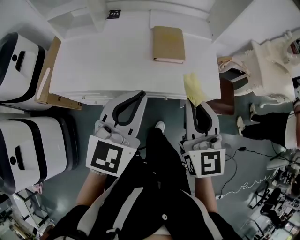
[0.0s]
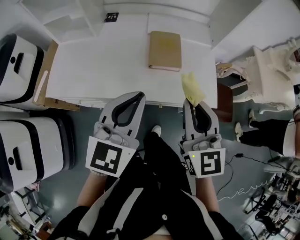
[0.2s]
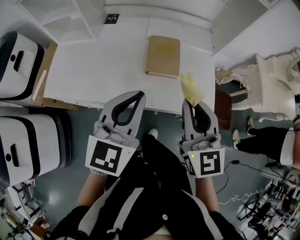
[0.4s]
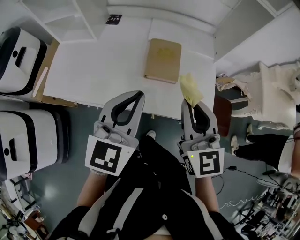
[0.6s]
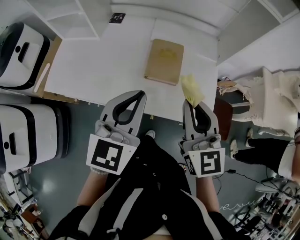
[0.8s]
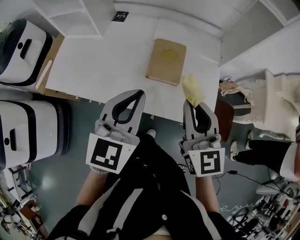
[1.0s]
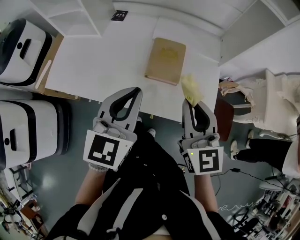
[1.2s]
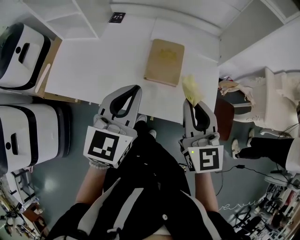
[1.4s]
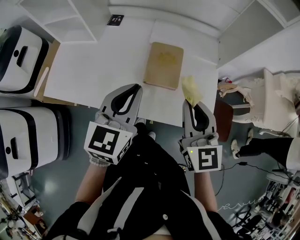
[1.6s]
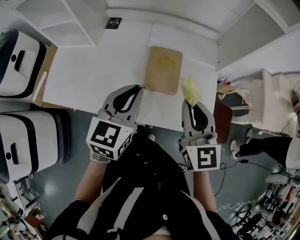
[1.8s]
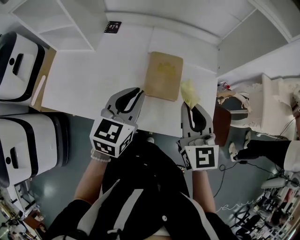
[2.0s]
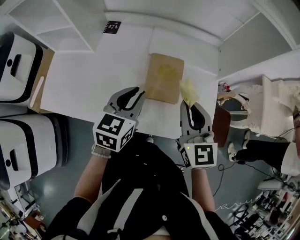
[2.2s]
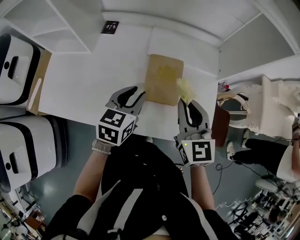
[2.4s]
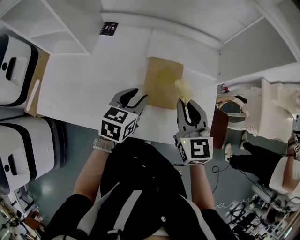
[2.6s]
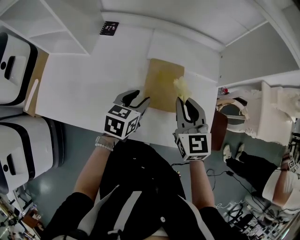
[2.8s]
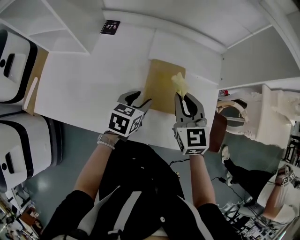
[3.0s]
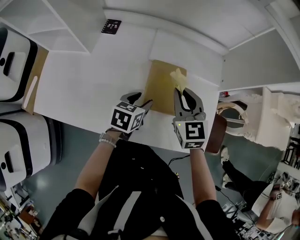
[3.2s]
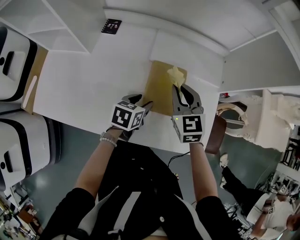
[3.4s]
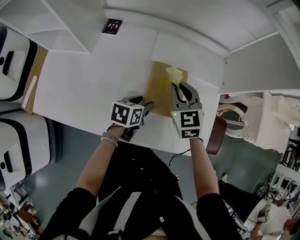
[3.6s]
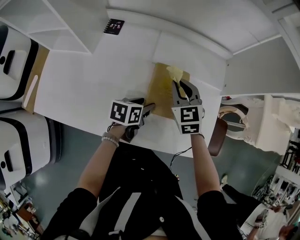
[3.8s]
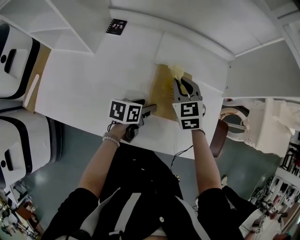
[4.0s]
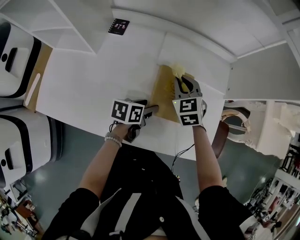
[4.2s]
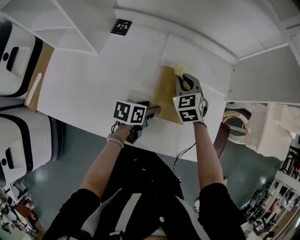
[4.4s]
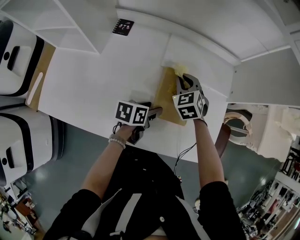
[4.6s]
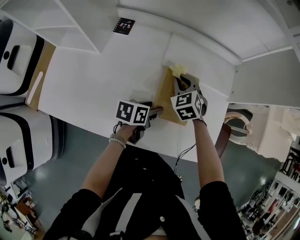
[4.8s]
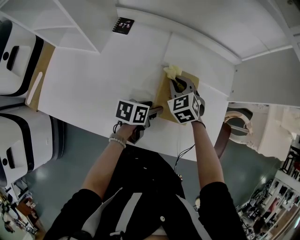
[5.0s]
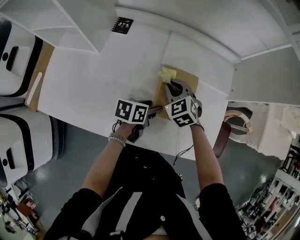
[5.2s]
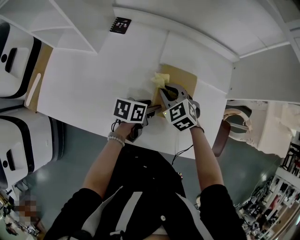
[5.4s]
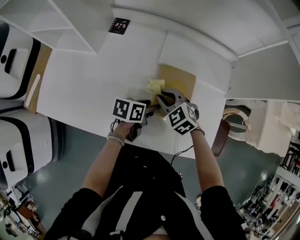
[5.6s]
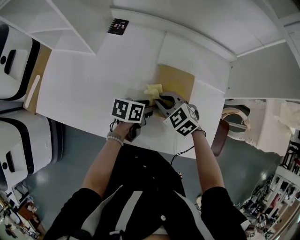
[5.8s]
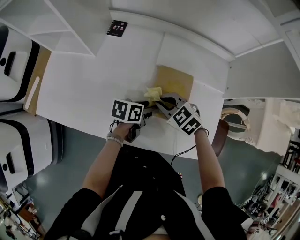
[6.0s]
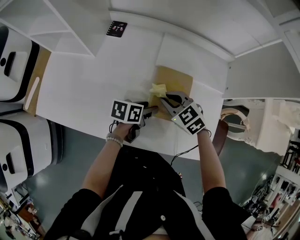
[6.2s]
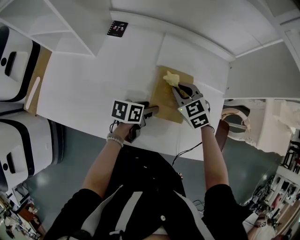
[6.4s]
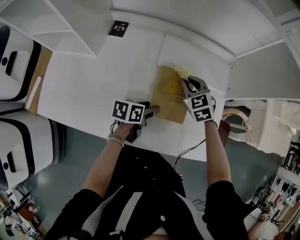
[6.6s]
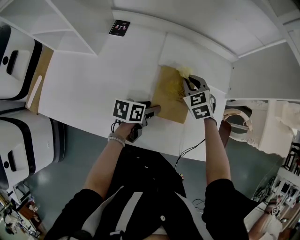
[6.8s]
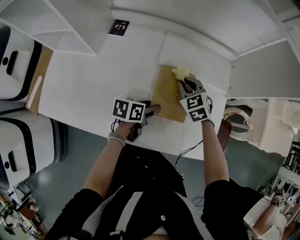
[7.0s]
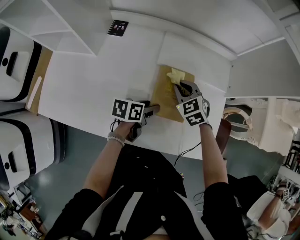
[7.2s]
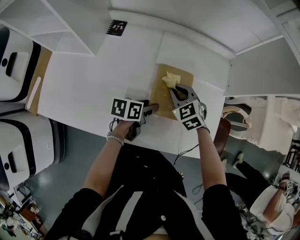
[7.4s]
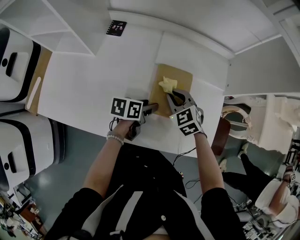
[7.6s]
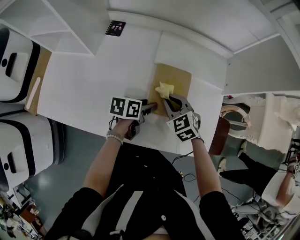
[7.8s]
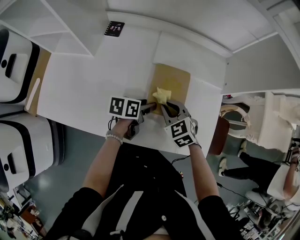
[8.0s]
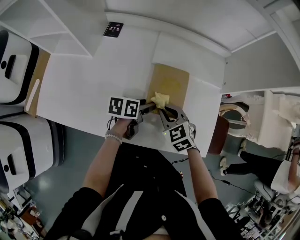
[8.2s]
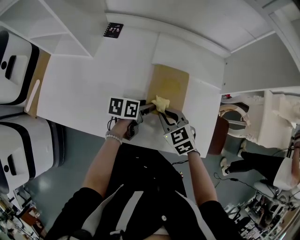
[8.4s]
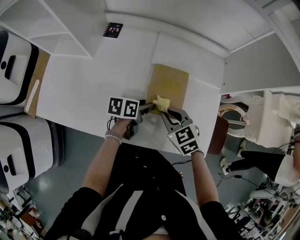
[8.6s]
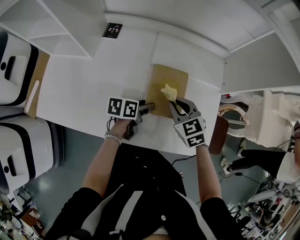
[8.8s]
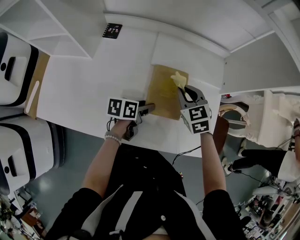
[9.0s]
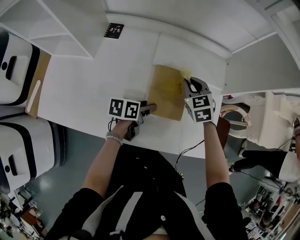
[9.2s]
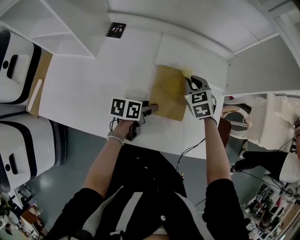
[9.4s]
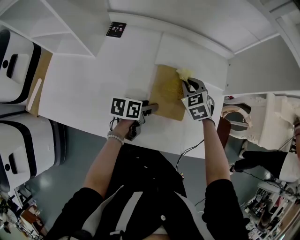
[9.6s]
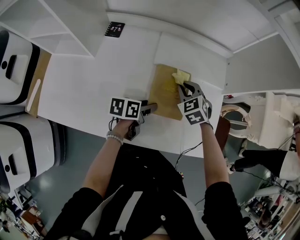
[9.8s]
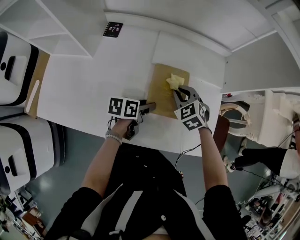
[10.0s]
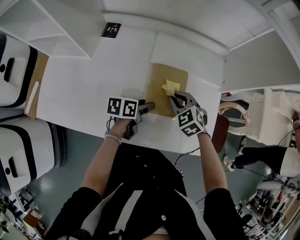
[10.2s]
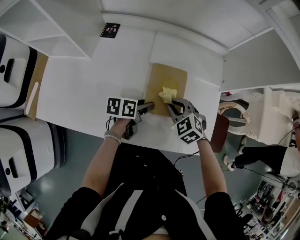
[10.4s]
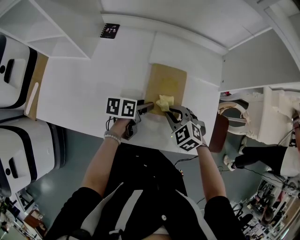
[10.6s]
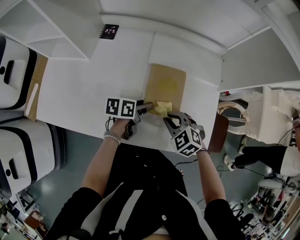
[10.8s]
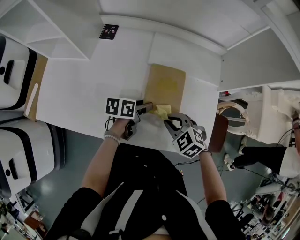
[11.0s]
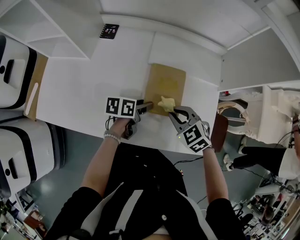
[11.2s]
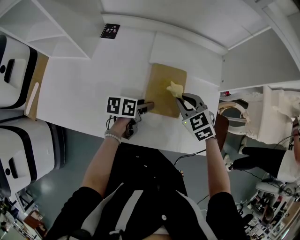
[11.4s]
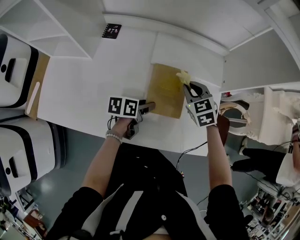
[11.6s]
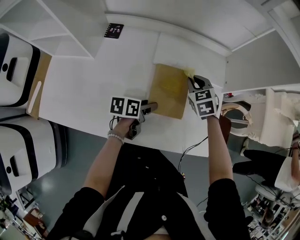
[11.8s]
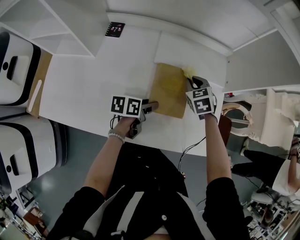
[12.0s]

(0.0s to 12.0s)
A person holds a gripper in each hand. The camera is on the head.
0.0s - 1.6s: The right gripper goes about 20 cm forward and to the right; the left gripper moves forward, about 15 cm.
1.6s - 3.0s: The right gripper heads forward and downward, covering about 20 cm. The left gripper goes roughly 25 cm downward and forward, changes its angle by roughly 30 degrees, and opens.
3.0s - 4.4s: The left gripper moves downward, some 5 cm, and changes its angle by about 30 degrees; the right gripper goes some 15 cm forward, downward and to the left, and changes its angle by some 30 degrees.
4.4s - 6.0s: The right gripper is displaced backward by approximately 15 cm, and rotates roughly 40 degrees.
6.0s - 7.6s: The right gripper goes forward and returns, about 15 cm each way, and changes its angle by roughly 20 degrees.
7.6s - 9.0s: The right gripper travels backward and back again, about 10 cm each way.
9.0s - 10.4s: The right gripper heads backward, covering about 10 cm, and swivels some 20 degrees.
10.4s - 12.0s: The right gripper moves forward, some 15 cm, and changes its angle by approximately 30 degrees.

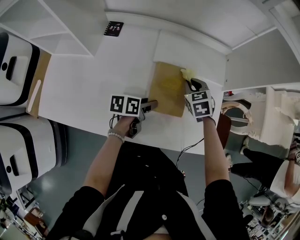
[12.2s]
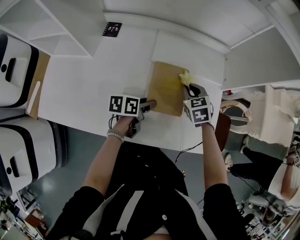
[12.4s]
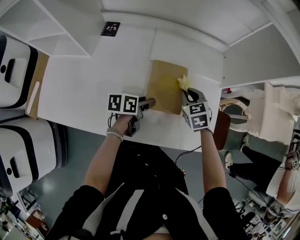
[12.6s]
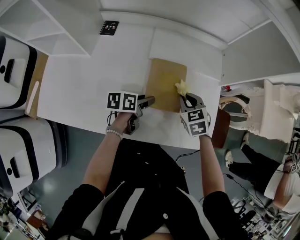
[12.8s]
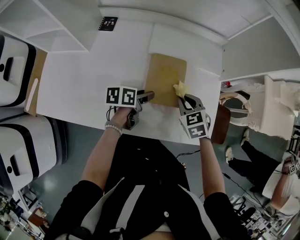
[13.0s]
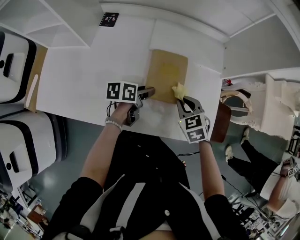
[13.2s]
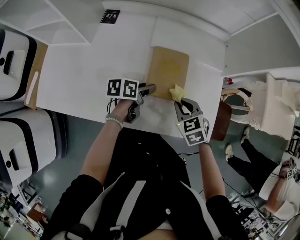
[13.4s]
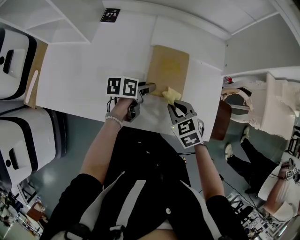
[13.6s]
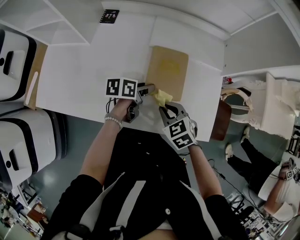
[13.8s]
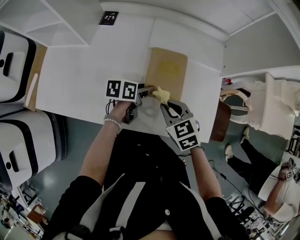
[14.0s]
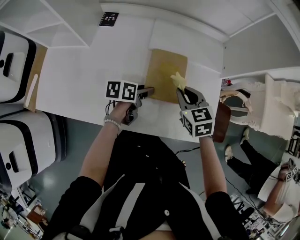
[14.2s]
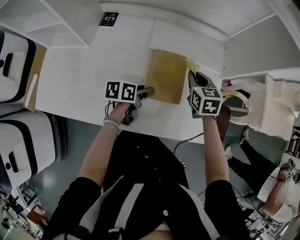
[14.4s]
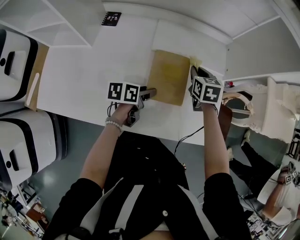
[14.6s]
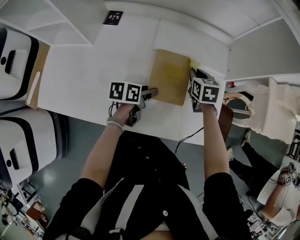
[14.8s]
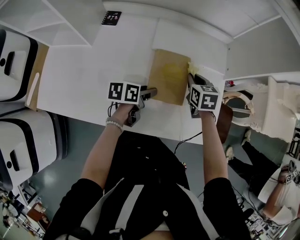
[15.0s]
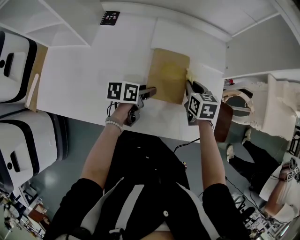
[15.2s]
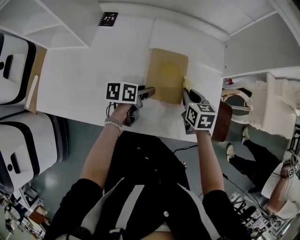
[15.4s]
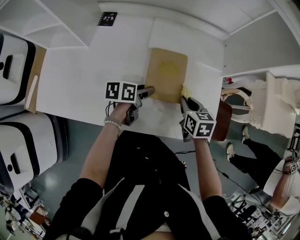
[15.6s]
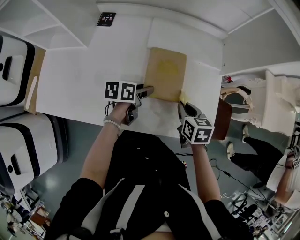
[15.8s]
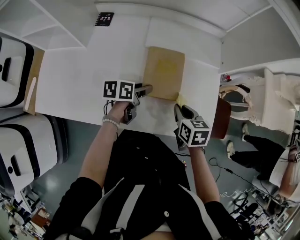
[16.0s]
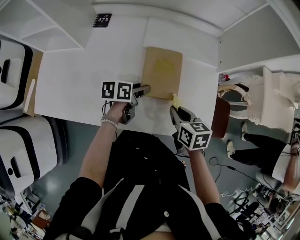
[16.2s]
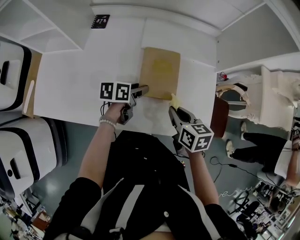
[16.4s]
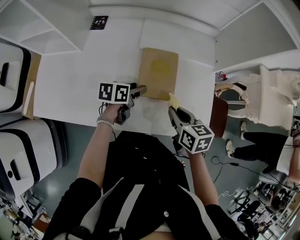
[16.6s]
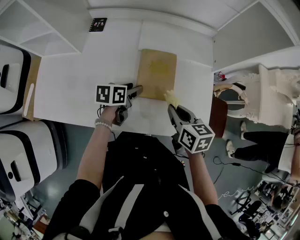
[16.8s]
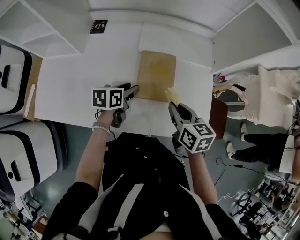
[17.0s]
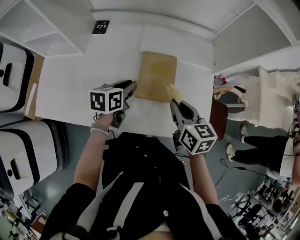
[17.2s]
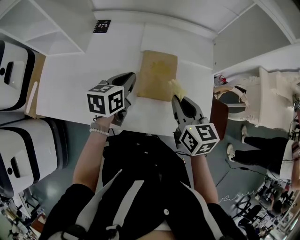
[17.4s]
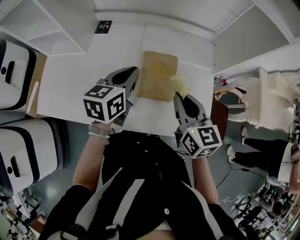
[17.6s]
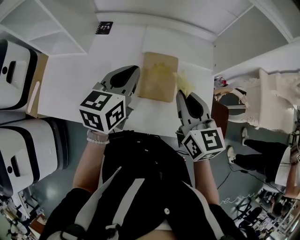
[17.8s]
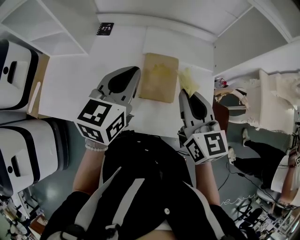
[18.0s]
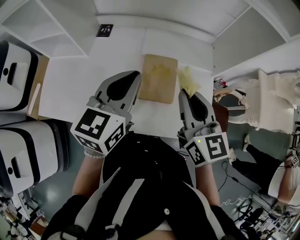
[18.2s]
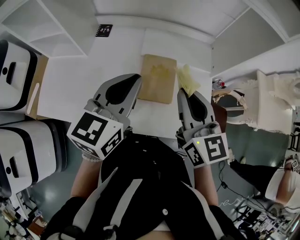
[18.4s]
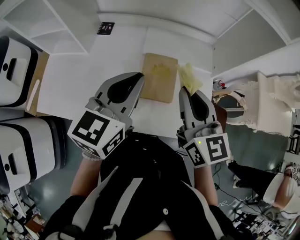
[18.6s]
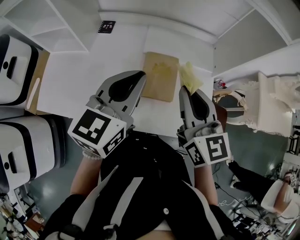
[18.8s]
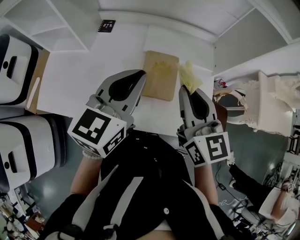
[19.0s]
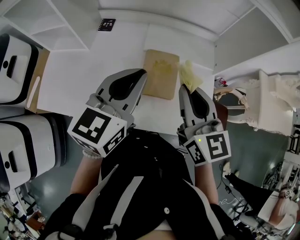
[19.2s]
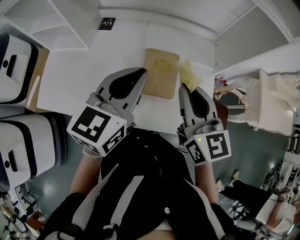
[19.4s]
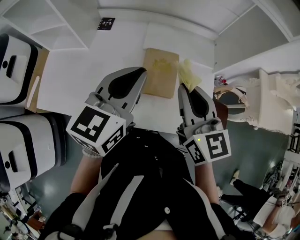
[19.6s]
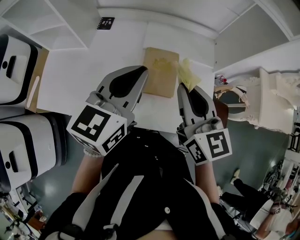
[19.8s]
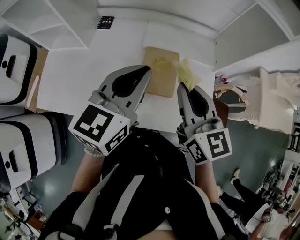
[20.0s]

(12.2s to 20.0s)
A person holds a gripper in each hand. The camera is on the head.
12.2s - 13.8s: The right gripper goes approximately 20 cm backward.
13.8s - 15.4s: The right gripper moves forward and to the right, some 15 cm, and turns by about 40 degrees.
15.4s - 16.8s: The right gripper shifts roughly 10 cm backward and upward.
16.8s - 18.4s: The grippers both shift upward by about 25 cm. The left gripper rotates some 50 degrees, and closes its fingers. Meanwhile the right gripper rotates roughly 40 degrees.
18.4s - 20.0s: The grippers stay close to where they were, moving slightly.

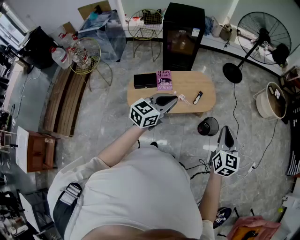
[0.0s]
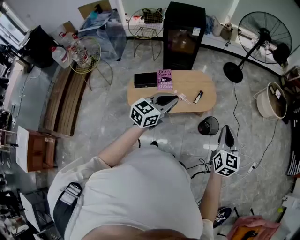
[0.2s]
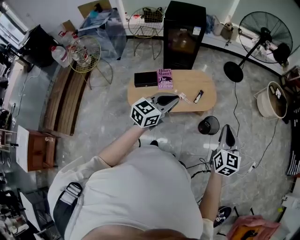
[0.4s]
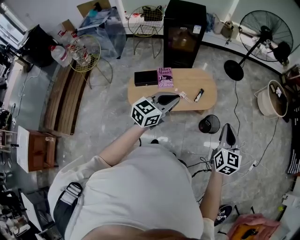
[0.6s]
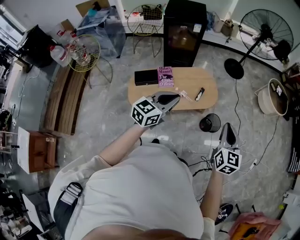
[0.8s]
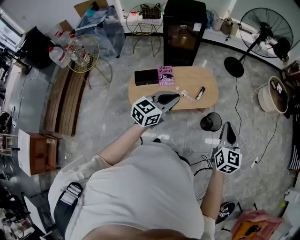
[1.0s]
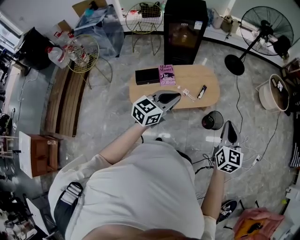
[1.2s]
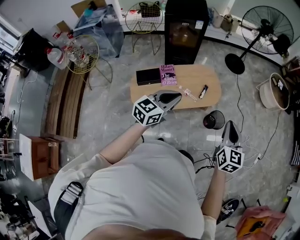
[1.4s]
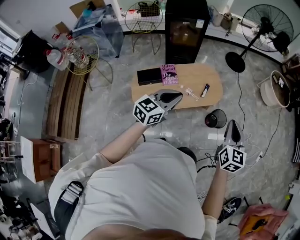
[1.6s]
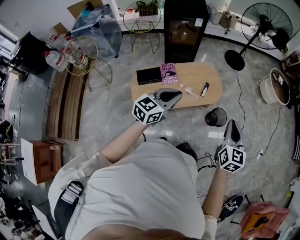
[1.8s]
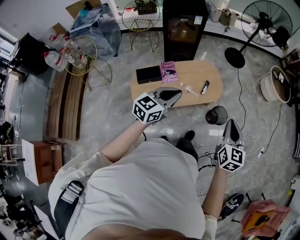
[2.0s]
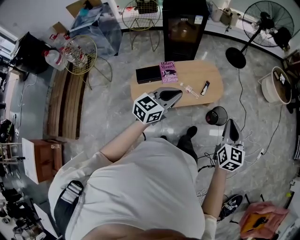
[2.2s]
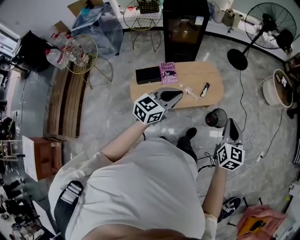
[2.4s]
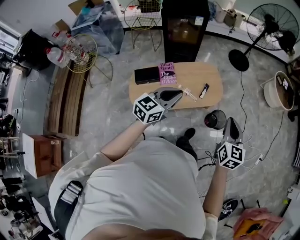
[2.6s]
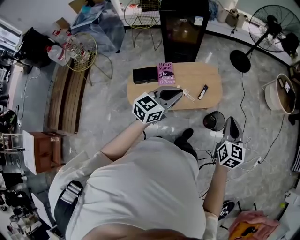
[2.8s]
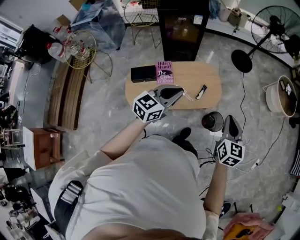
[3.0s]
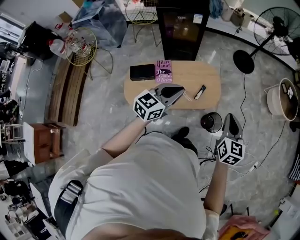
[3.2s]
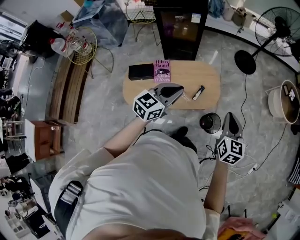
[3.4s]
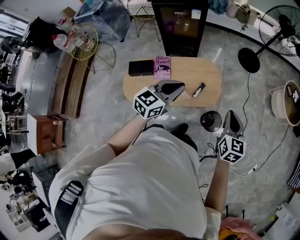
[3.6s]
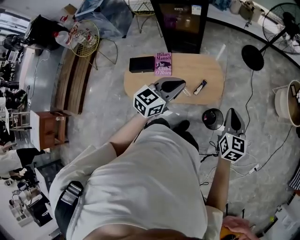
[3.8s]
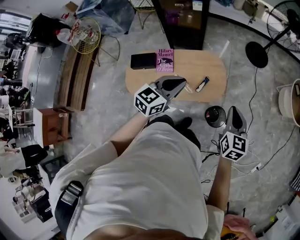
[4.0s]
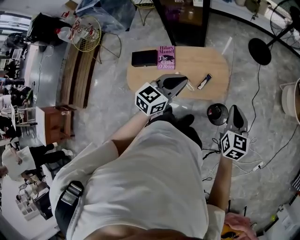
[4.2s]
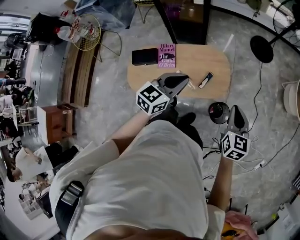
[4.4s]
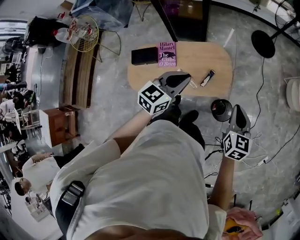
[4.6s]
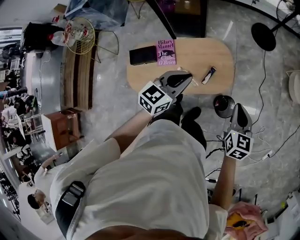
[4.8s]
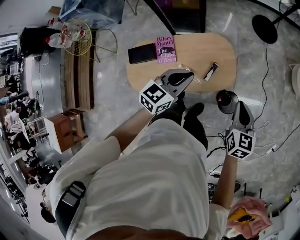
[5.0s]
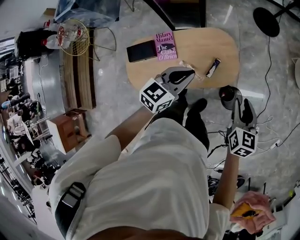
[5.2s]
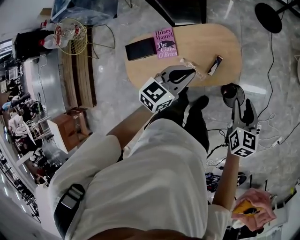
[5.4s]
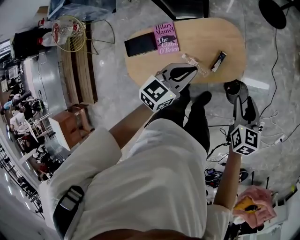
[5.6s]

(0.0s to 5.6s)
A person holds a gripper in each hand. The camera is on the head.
0.0s - 1.4s: The right gripper moves to the left, about 5 cm; the left gripper moves about 5 cm.
1.4s - 2.8s: The two grippers go approximately 10 cm forward.
2.8s - 4.2s: The left gripper is displaced forward and to the right by roughly 20 cm, while the right gripper is displaced forward, to the right and downward by roughly 20 cm.
4.2s - 5.6s: The left gripper heads downward and forward, covering roughly 15 cm. Meanwhile the right gripper heads downward and to the left, covering approximately 15 cm, and opens.
